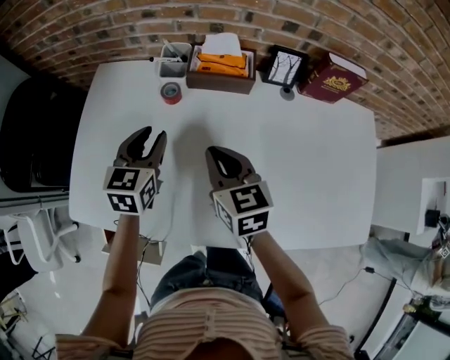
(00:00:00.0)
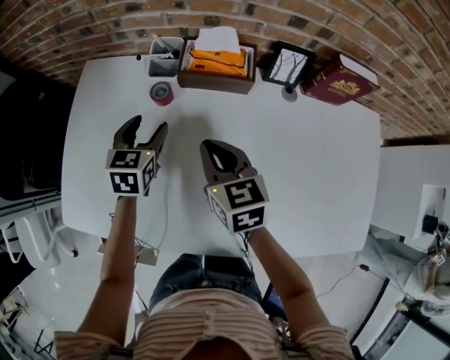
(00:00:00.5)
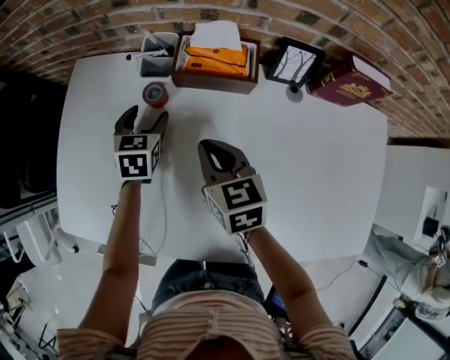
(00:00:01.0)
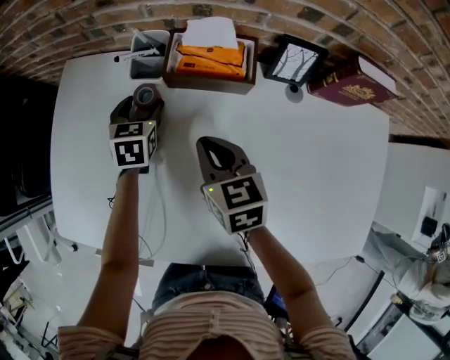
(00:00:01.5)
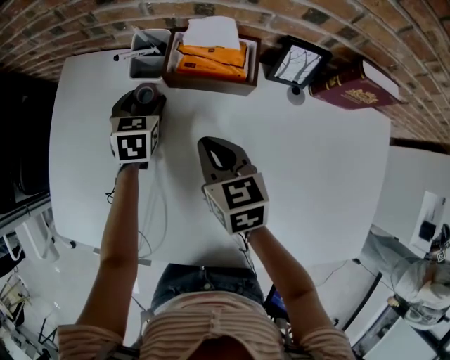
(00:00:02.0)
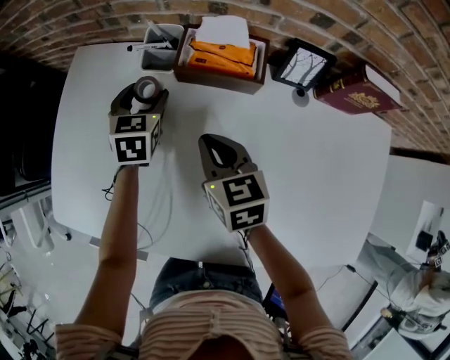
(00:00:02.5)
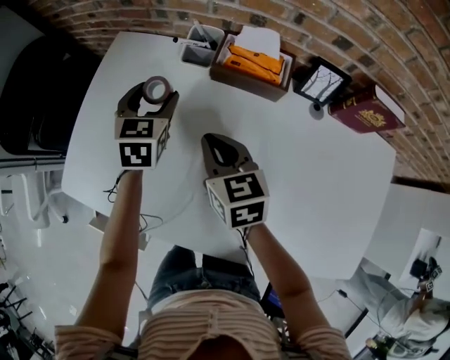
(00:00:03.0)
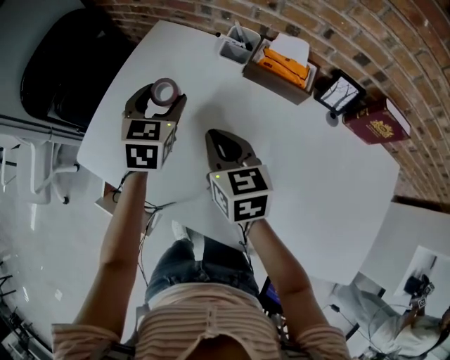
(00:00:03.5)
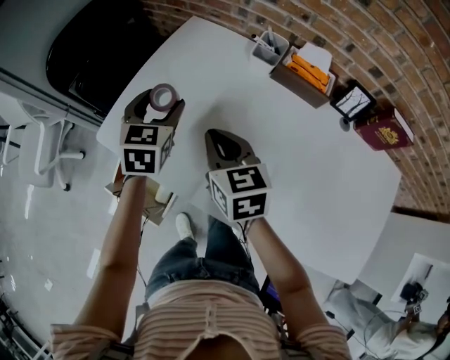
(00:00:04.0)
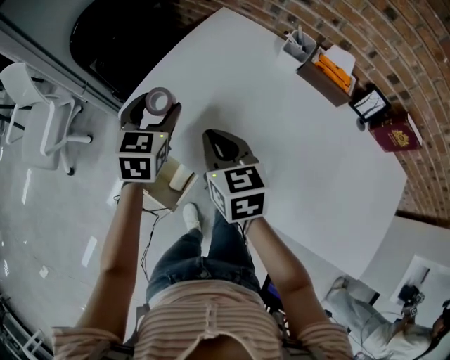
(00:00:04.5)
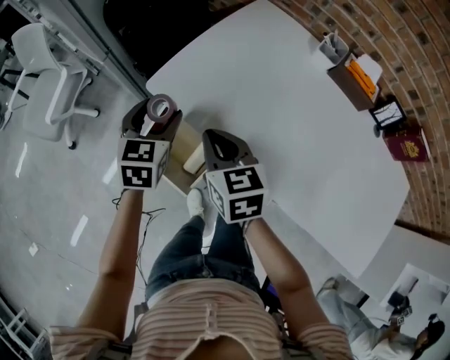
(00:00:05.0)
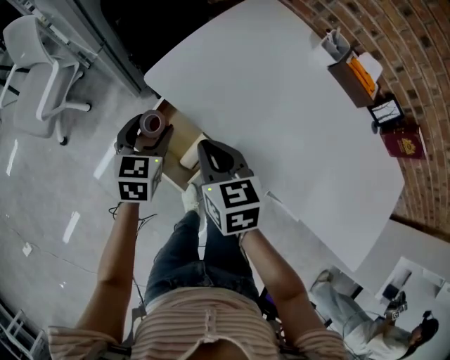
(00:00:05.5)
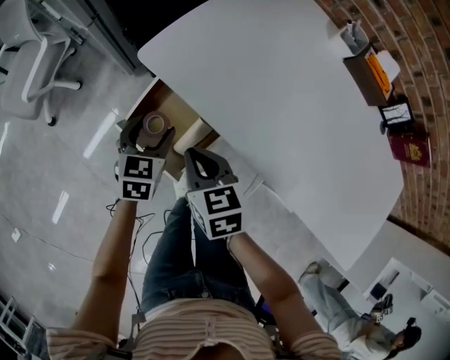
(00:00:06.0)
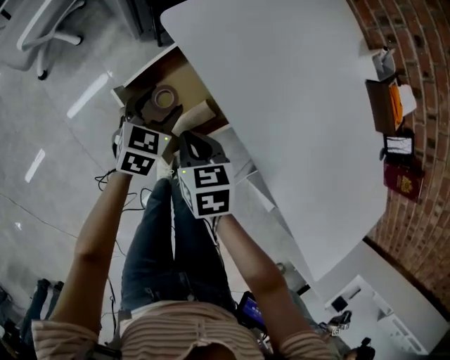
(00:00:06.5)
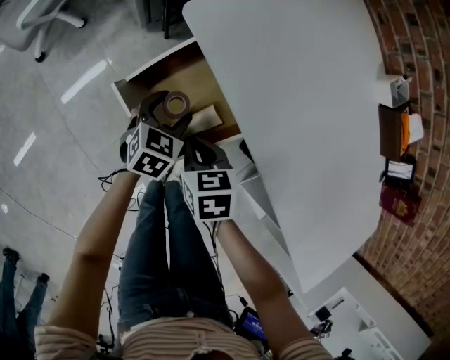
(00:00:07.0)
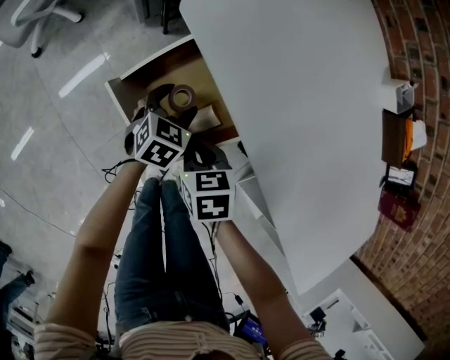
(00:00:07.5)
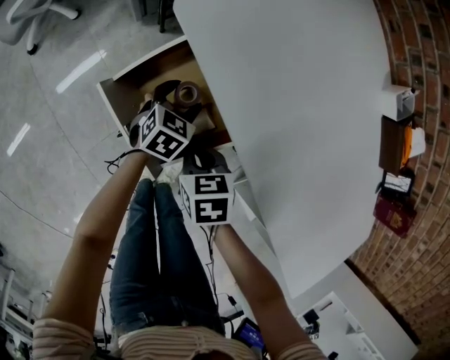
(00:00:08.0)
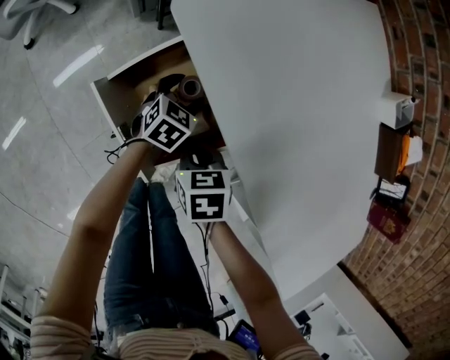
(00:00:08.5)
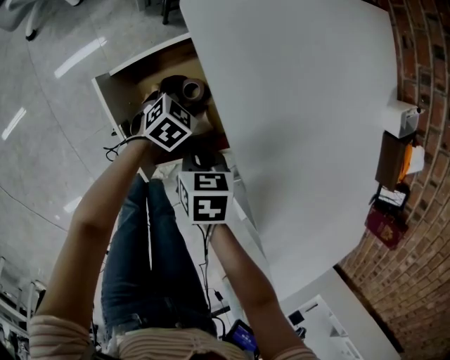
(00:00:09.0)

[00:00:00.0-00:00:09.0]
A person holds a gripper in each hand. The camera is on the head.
00:00:00.0 to 00:00:02.0: The right gripper moves forward and downward, some 15 cm, while the left gripper shifts about 20 cm forward and downward, and opens its fingers.
00:00:02.0 to 00:00:04.5: Both grippers move to the left and backward, some 40 cm. The left gripper turns by some 30 degrees. The right gripper rotates roughly 30 degrees.
00:00:04.5 to 00:00:07.0: The grippers both shift downward and to the left by roughly 35 cm. The right gripper turns by roughly 30 degrees.
00:00:07.0 to 00:00:09.0: The right gripper moves downward, about 5 cm. Meanwhile the left gripper goes about 15 cm downward, to the right and forward.

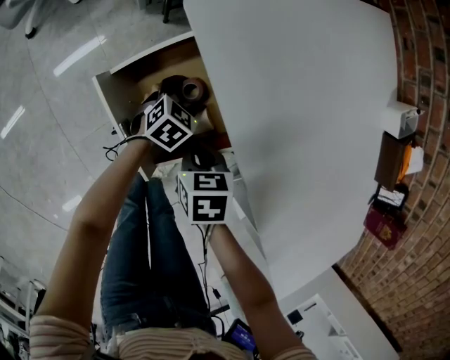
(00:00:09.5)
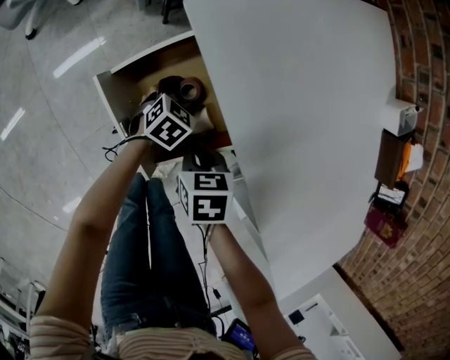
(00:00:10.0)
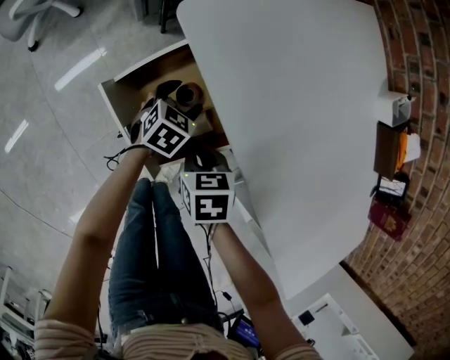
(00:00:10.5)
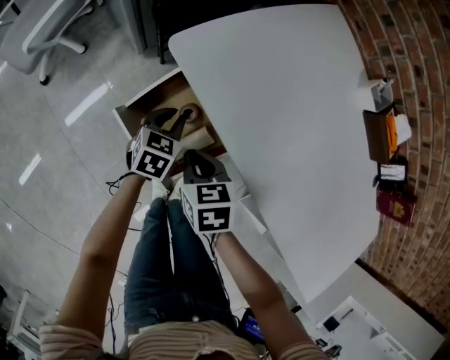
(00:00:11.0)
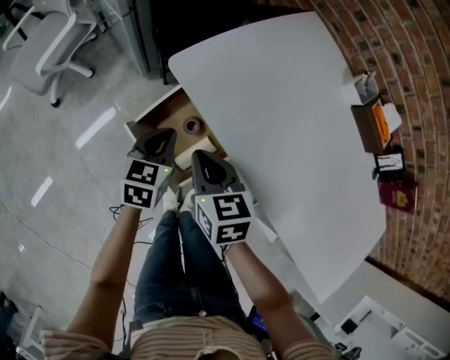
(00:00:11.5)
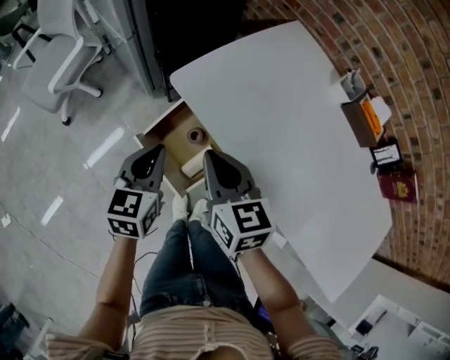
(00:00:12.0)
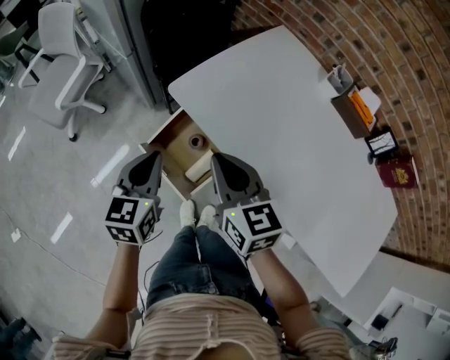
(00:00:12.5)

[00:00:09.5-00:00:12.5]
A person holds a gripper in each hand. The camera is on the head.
00:00:09.5 to 00:00:11.0: Both grippers move upward, roughly 10 cm. The left gripper closes.
00:00:11.0 to 00:00:12.5: The two grippers go some 25 cm upward. The right gripper angles its fingers upward, by about 30 degrees; the left gripper changes its angle by some 20 degrees.

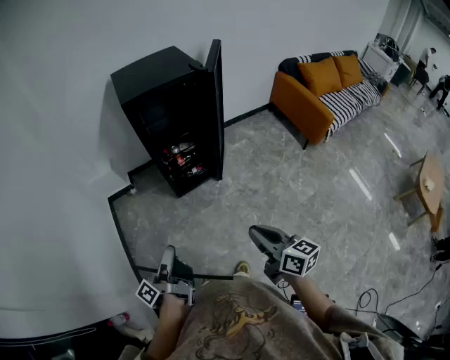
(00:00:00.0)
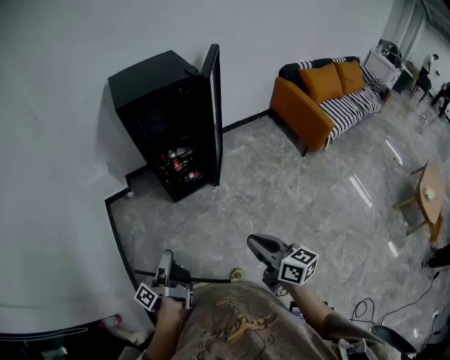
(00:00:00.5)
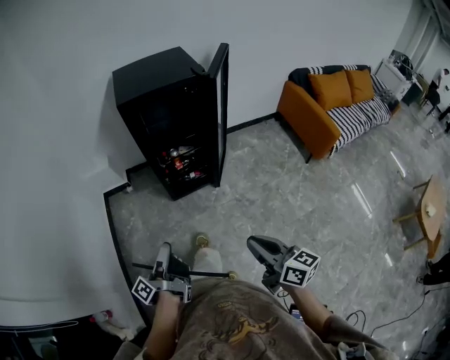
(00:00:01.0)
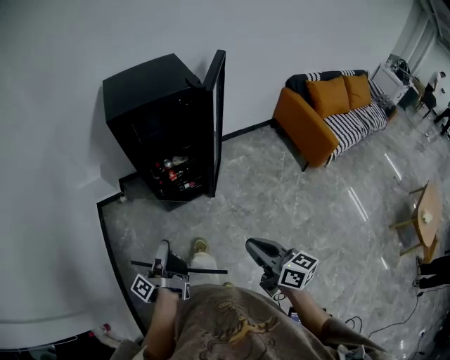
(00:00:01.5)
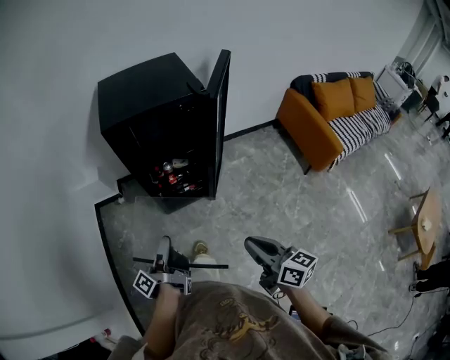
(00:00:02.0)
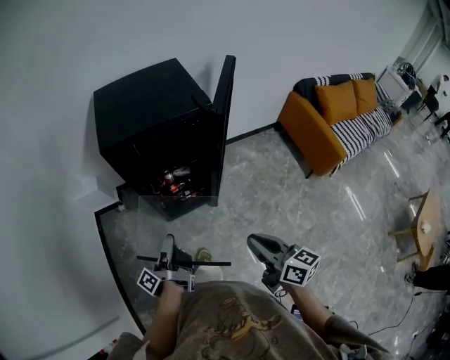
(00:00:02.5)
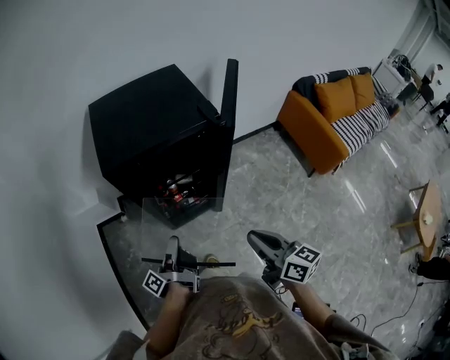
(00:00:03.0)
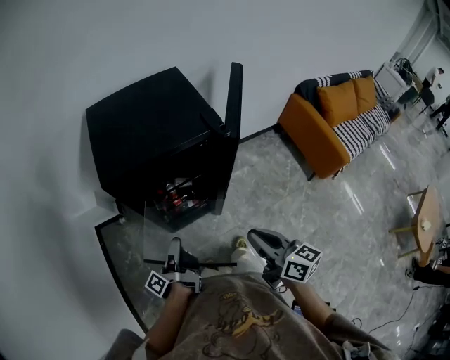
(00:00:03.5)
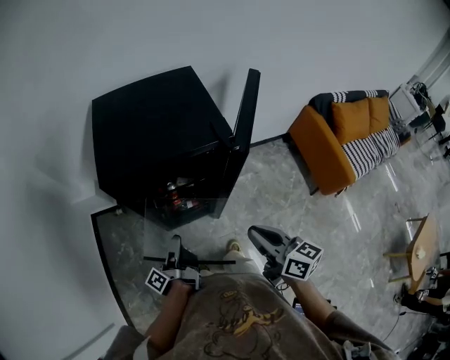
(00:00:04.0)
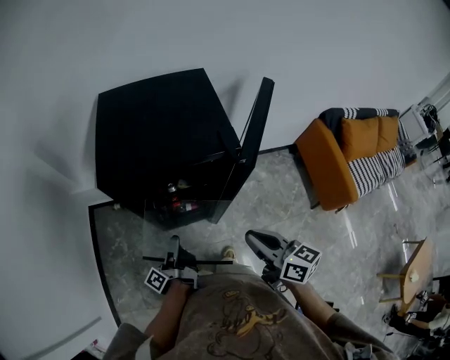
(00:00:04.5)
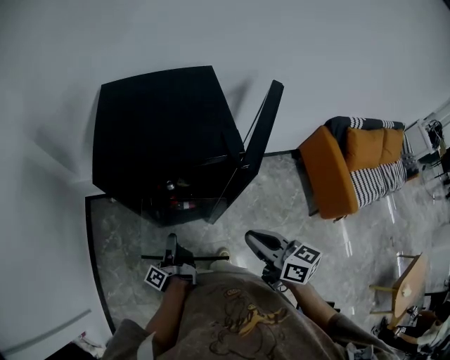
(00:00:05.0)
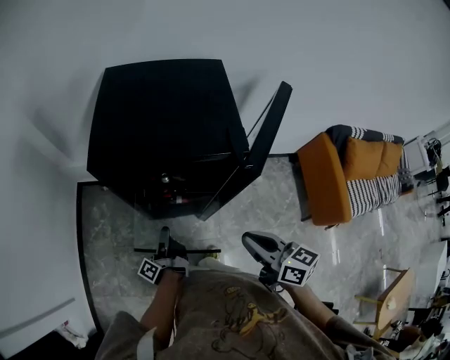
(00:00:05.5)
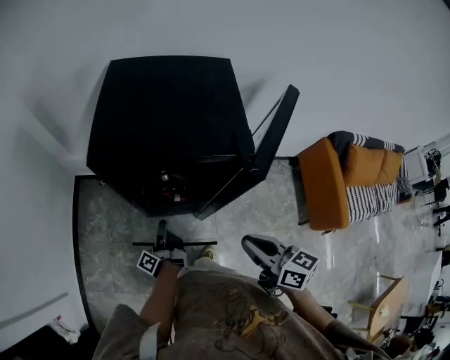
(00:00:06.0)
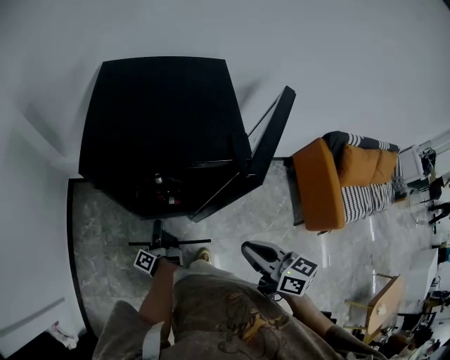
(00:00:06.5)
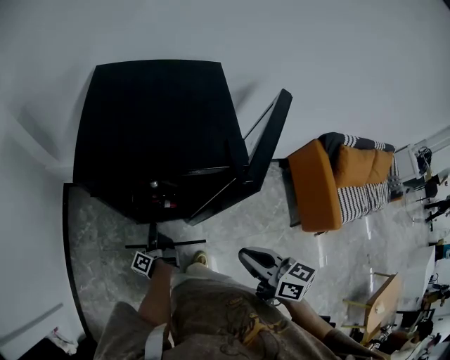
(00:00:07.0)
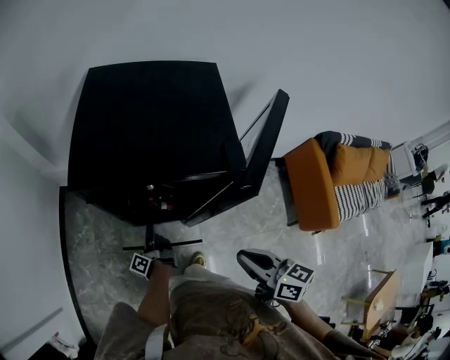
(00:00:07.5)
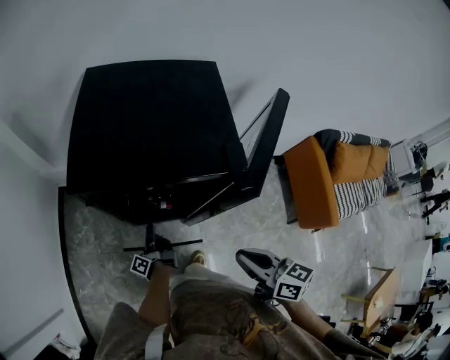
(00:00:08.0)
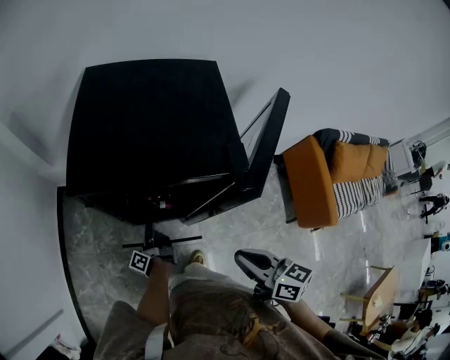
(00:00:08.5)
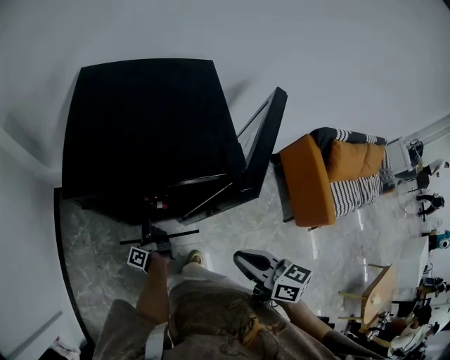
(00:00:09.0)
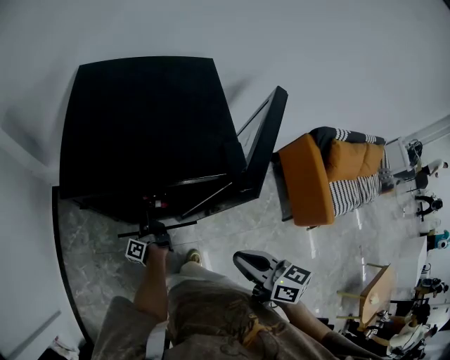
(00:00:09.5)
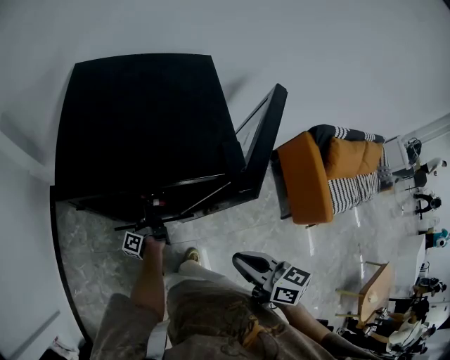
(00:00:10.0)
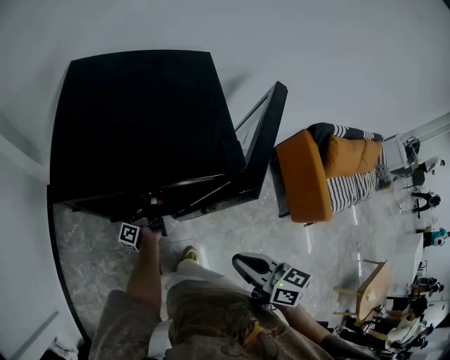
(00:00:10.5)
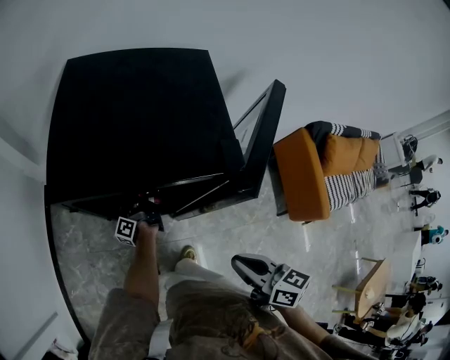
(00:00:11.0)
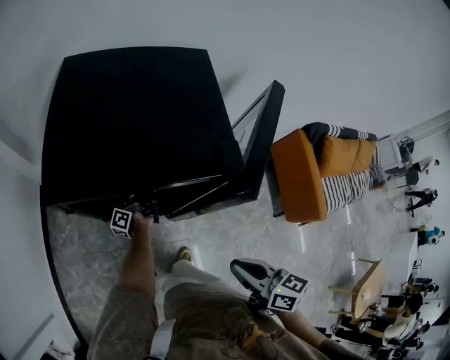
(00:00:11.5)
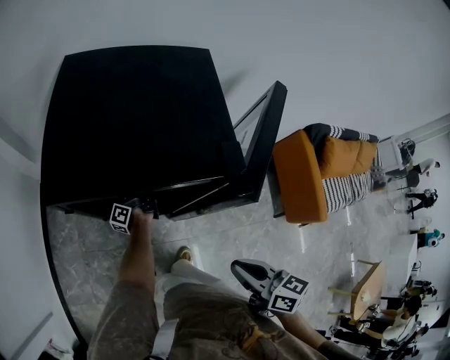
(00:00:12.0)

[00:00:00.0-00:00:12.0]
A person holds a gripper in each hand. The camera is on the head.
00:00:00.0 to 00:00:02.0: The right gripper ends up some 15 cm from where it was.
00:00:02.0 to 00:00:04.0: The right gripper changes place by approximately 25 cm.
00:00:04.0 to 00:00:06.0: The right gripper moves some 5 cm.

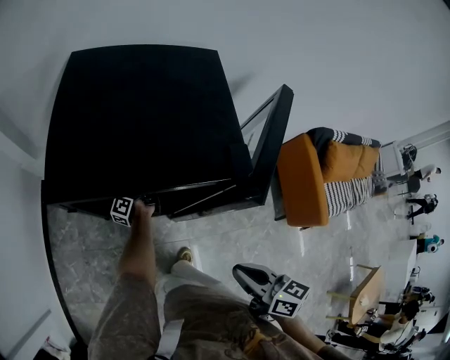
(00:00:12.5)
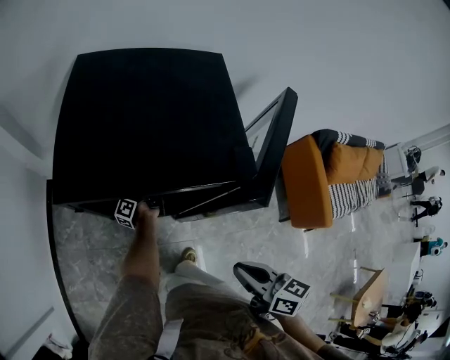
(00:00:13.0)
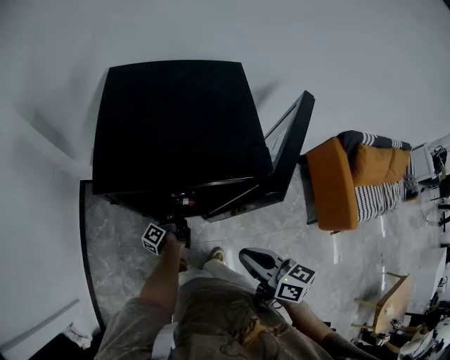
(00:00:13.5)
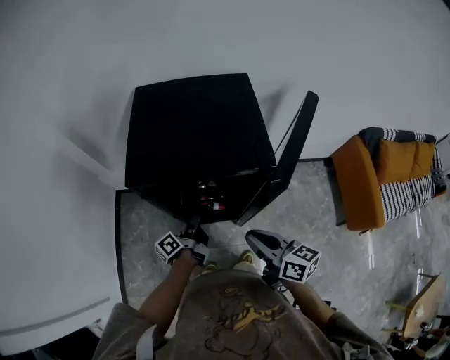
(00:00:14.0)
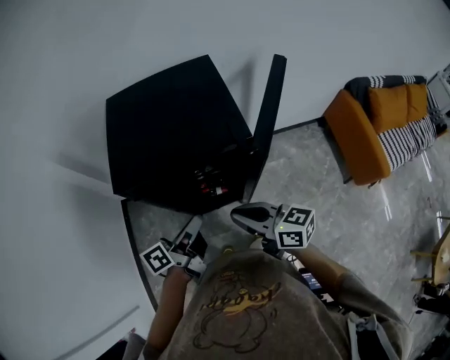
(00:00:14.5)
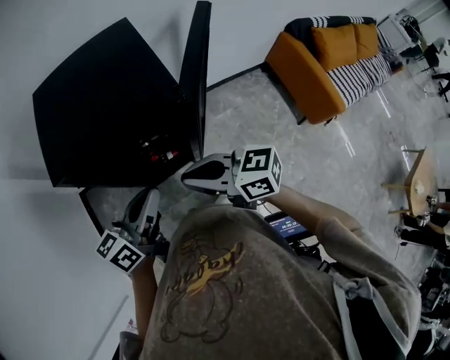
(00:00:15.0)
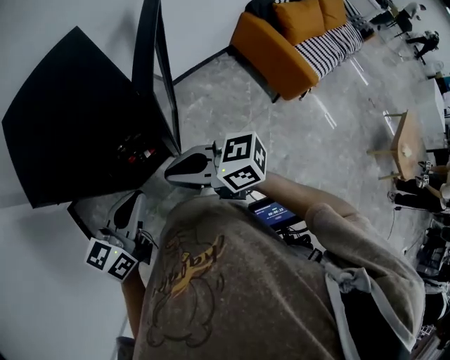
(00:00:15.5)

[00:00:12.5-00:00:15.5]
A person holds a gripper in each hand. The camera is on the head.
00:00:12.5 to 00:00:14.0: The right gripper moves about 10 cm.
00:00:14.0 to 00:00:15.5: The right gripper changes place by about 5 cm.
